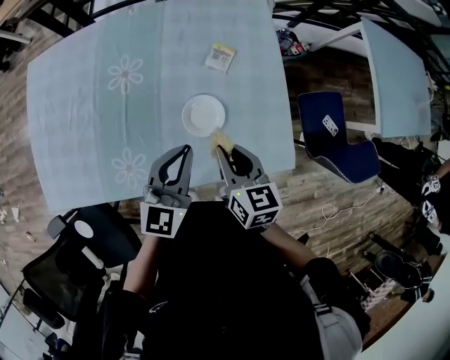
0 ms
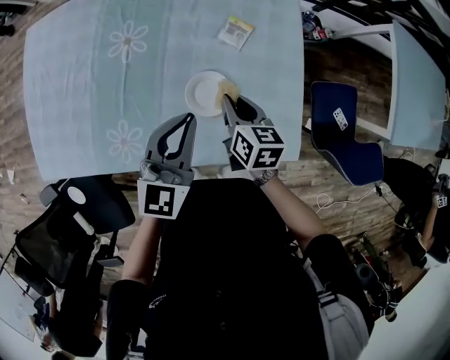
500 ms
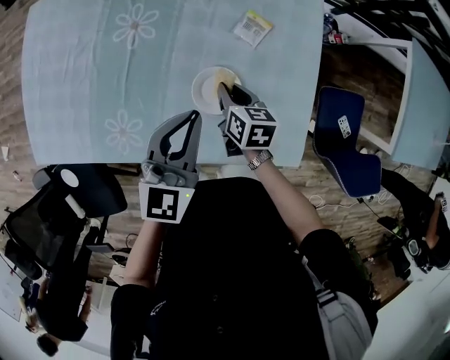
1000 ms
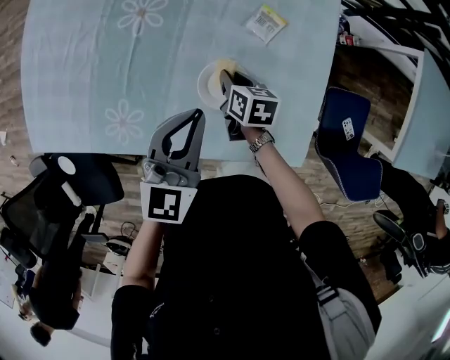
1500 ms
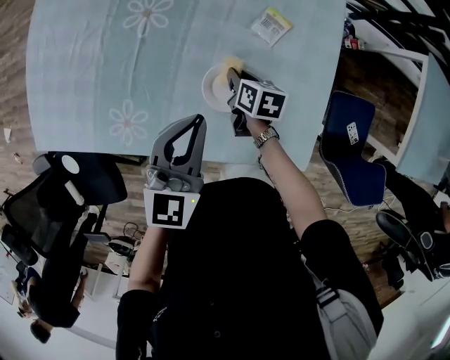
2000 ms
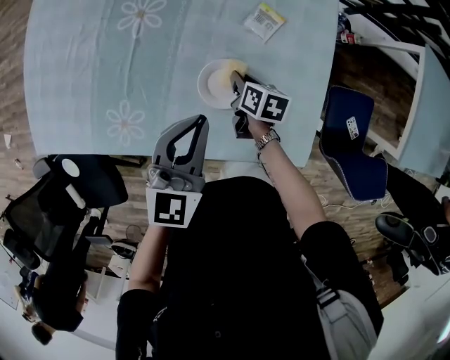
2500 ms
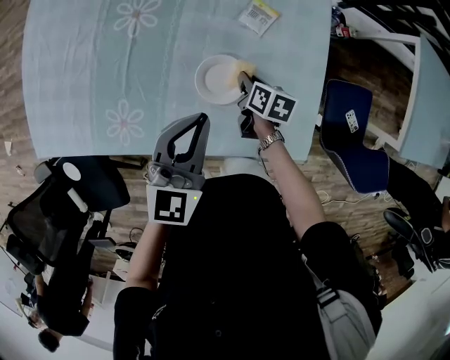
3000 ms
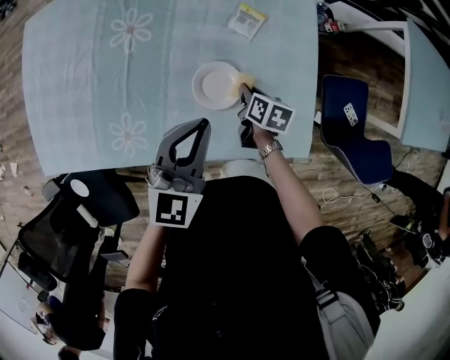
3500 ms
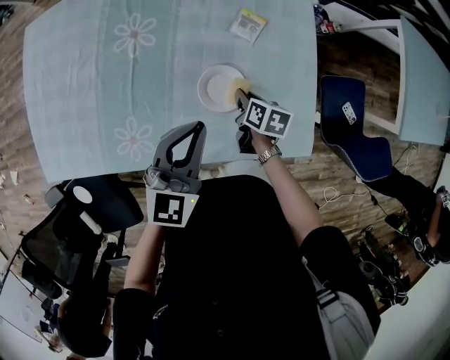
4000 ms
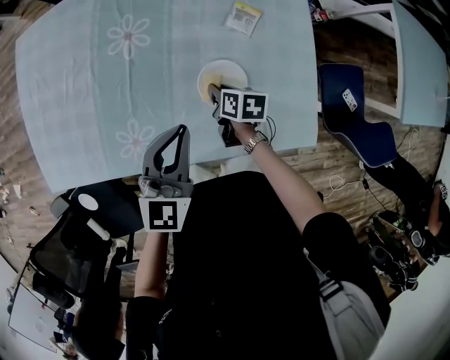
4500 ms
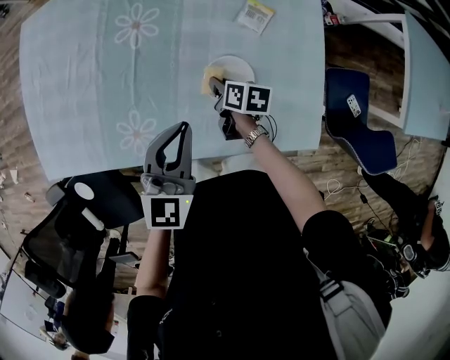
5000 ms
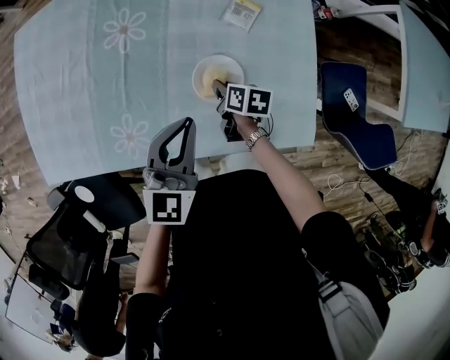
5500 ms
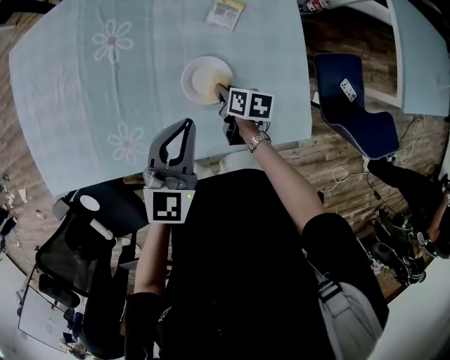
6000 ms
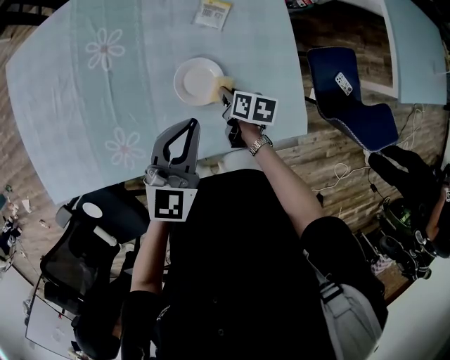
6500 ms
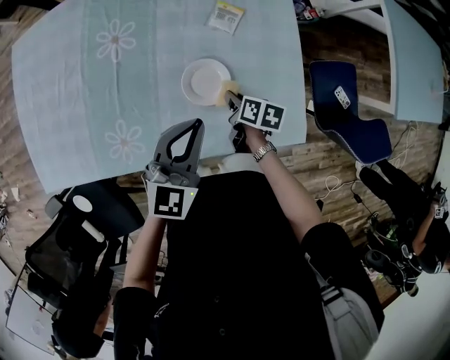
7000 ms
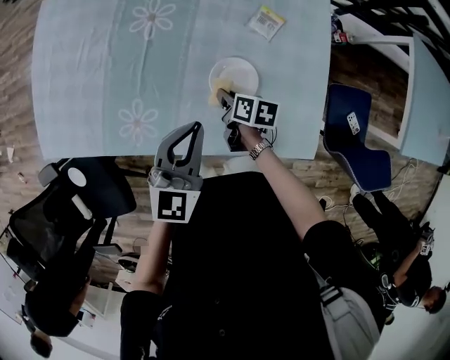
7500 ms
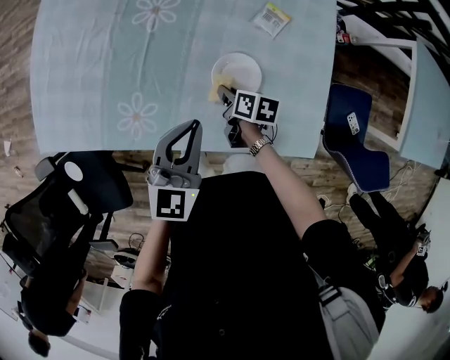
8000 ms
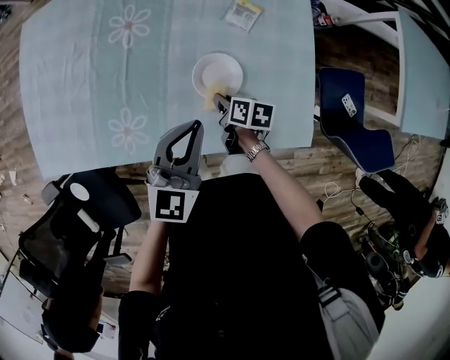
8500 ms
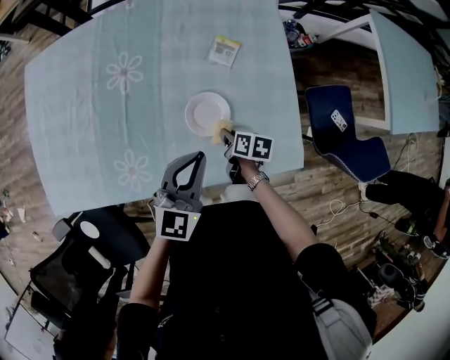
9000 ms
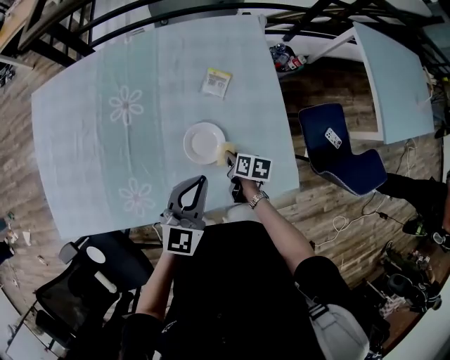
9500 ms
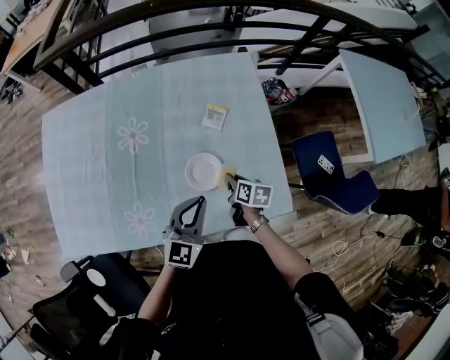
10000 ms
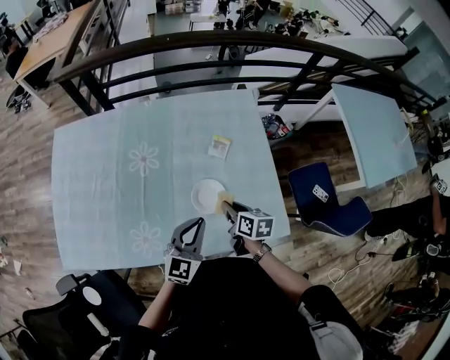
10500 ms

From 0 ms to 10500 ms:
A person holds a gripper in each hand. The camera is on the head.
From 0 ms to 2000 ms: The left gripper changes place by approximately 5 cm. The right gripper travels downward and forward by roughly 25 cm, and swivels about 30 degrees.
From 2000 ms to 4000 ms: The right gripper travels backward by approximately 5 cm.
From 4000 ms to 6500 ms: The left gripper changes place by approximately 5 cm. The right gripper reaches roughly 10 cm to the left, then returns.
From 6500 ms to 8500 ms: The right gripper shifts approximately 10 cm to the left.
From 8500 ms to 10500 ms: The right gripper is displaced upward by about 15 cm, and swivels some 20 degrees.

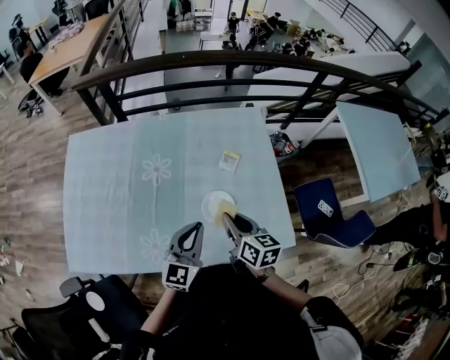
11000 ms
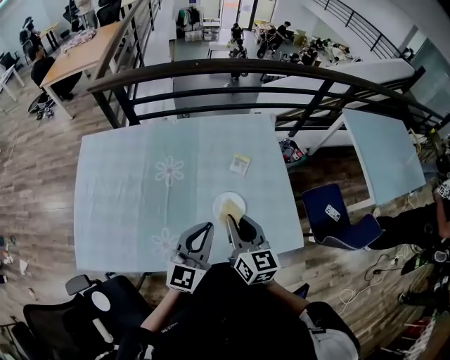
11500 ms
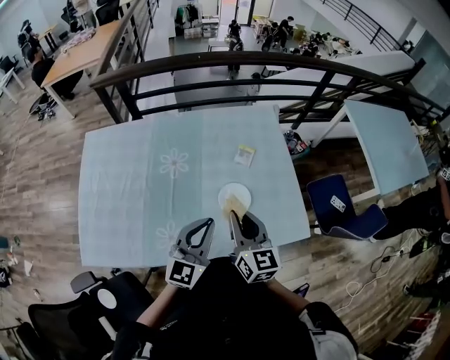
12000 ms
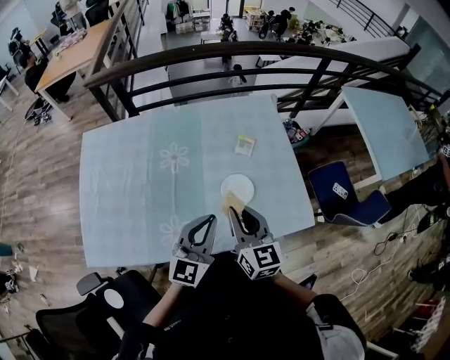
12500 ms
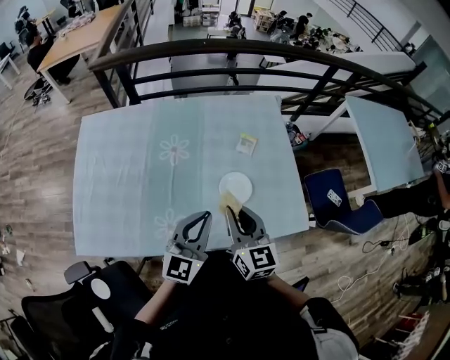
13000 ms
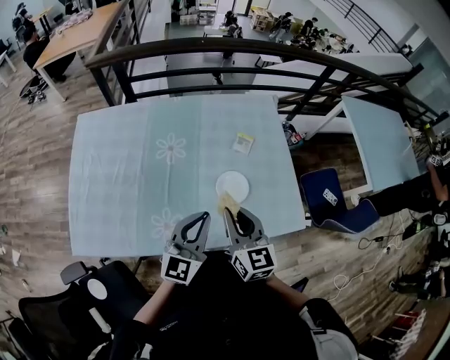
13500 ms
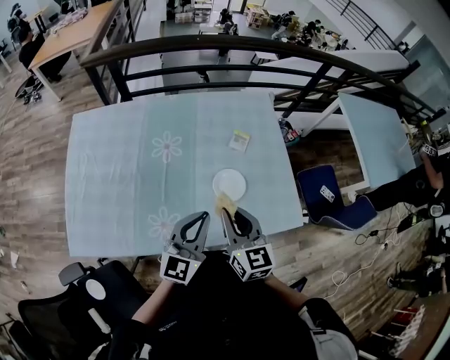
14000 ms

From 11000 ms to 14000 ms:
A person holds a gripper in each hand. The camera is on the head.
From 11000 ms to 12500 ms: The left gripper heads backward, covering approximately 5 cm. Meanwhile the right gripper travels backward, to the left and upward by roughly 10 cm, and swivels about 30 degrees.
From 12500 ms to 14000 ms: The grippers make only small movements.

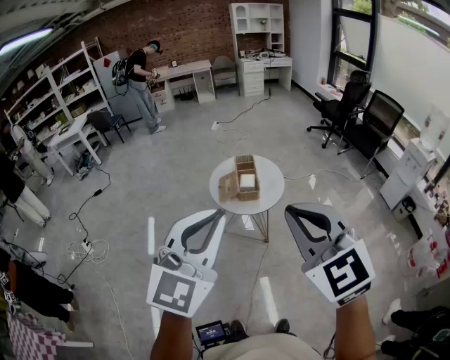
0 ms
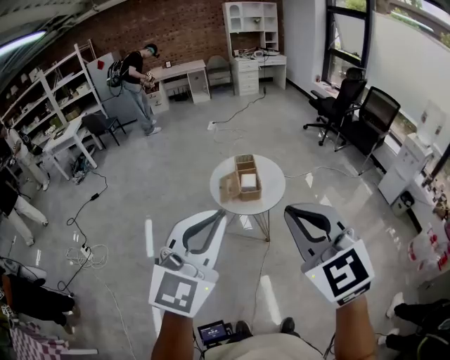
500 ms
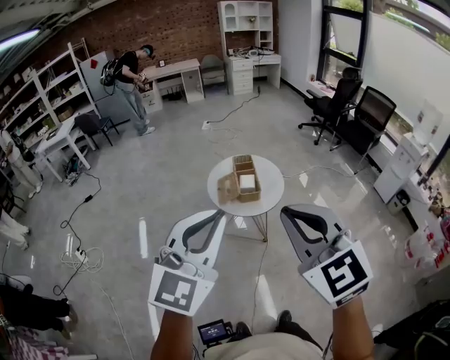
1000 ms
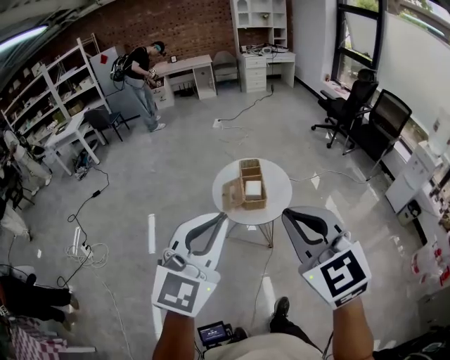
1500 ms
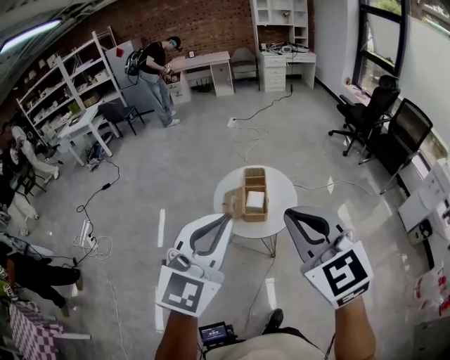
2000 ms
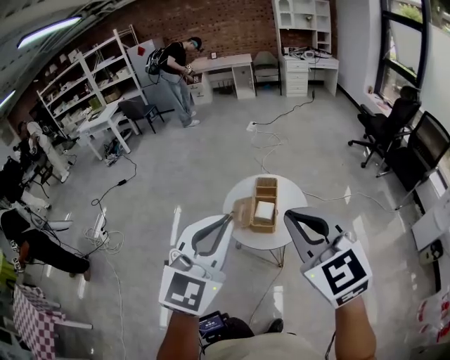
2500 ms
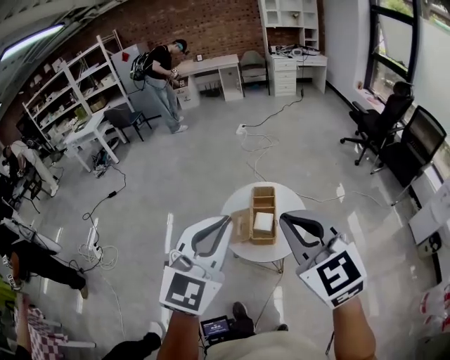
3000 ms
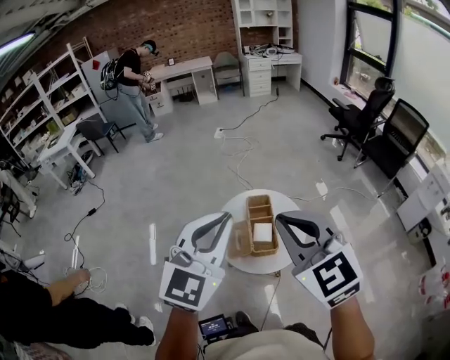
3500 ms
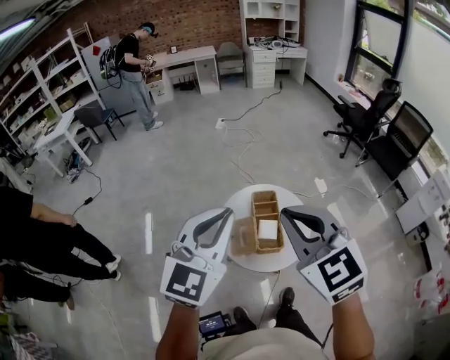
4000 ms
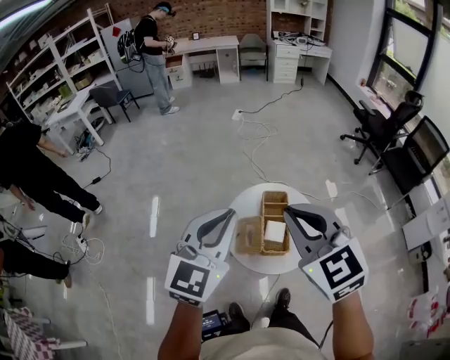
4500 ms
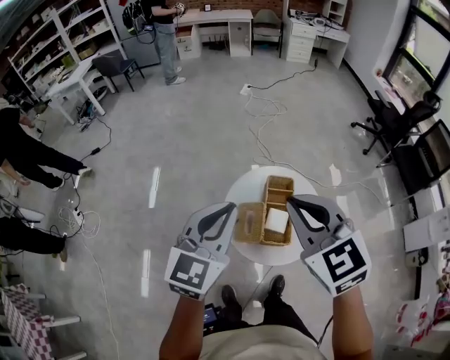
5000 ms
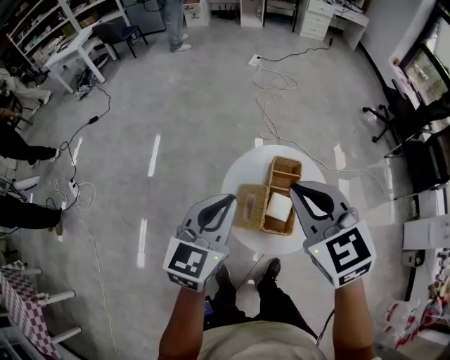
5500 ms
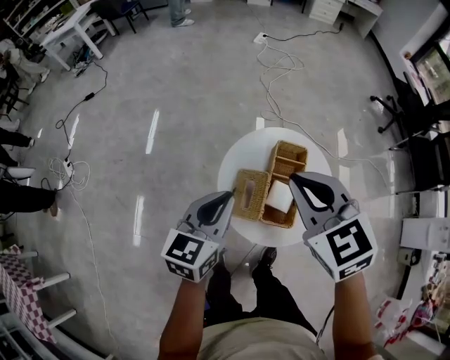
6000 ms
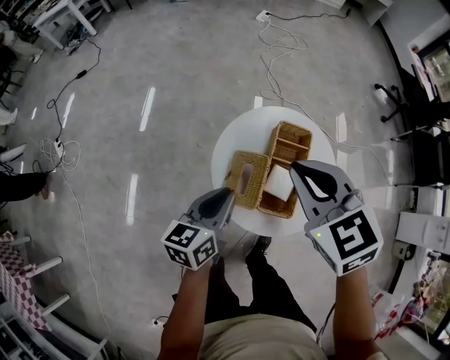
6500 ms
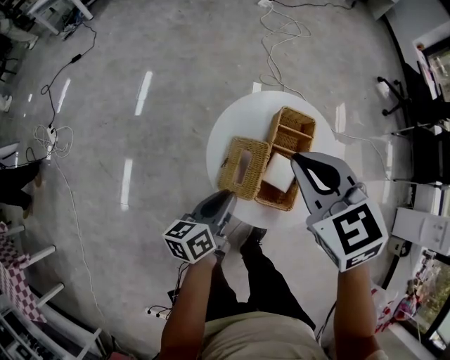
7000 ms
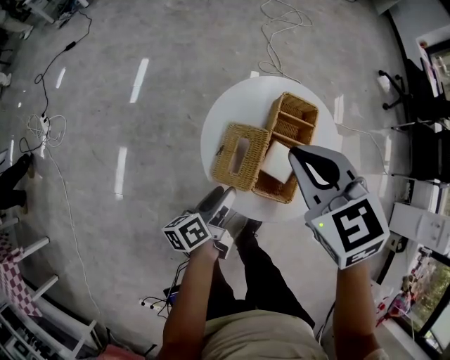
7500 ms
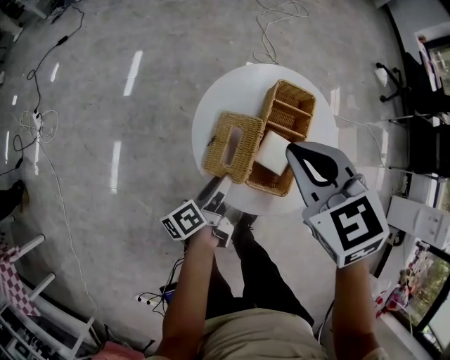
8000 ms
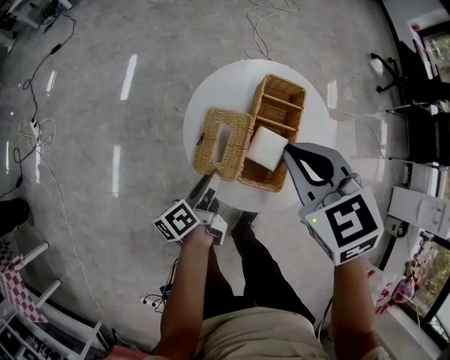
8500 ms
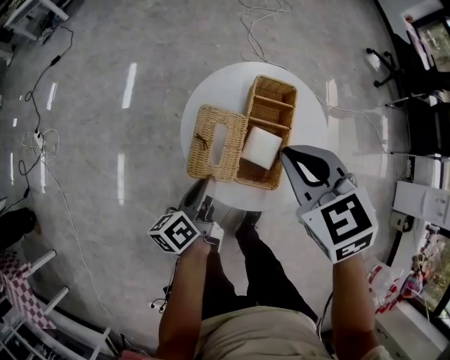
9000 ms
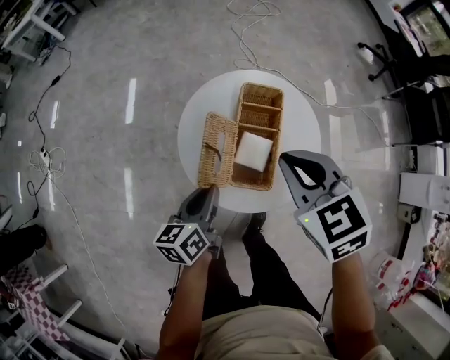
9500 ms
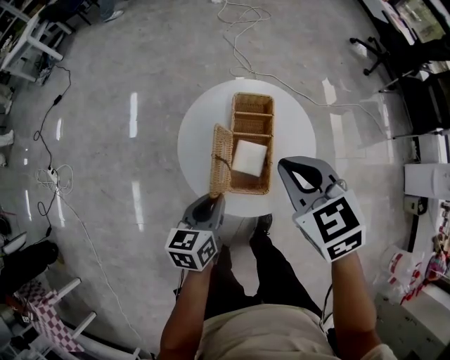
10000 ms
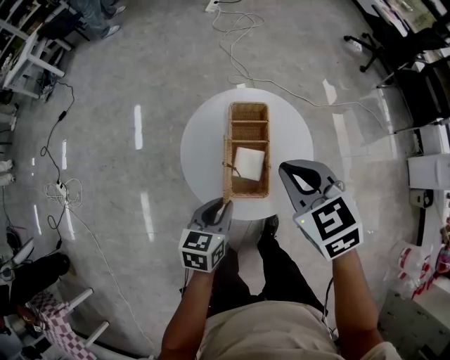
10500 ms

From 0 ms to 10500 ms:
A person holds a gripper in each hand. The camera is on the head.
From 0 ms to 2000 ms: Both grippers travel together forward, some 20 cm.
From 2000 ms to 4000 ms: The right gripper shifts about 25 cm forward and to the left; the left gripper travels forward by roughly 25 cm.
From 4000 ms to 6500 ms: The left gripper goes roughly 40 cm downward, and twists some 50 degrees counterclockwise, seen from behind. The right gripper goes about 30 cm downward and forward, and rotates some 30 degrees.
From 6500 ms to 8500 ms: The left gripper goes approximately 20 cm downward, rotates around the line of its fingers by roughly 40 degrees, counterclockwise from behind, and opens its fingers; the right gripper heads downward, covering some 10 cm.
From 8500 ms to 10500 ms: The left gripper is displaced upward and to the right by approximately 15 cm, twists approximately 60 degrees clockwise, seen from behind, and closes up. The right gripper is displaced to the right by roughly 10 cm.

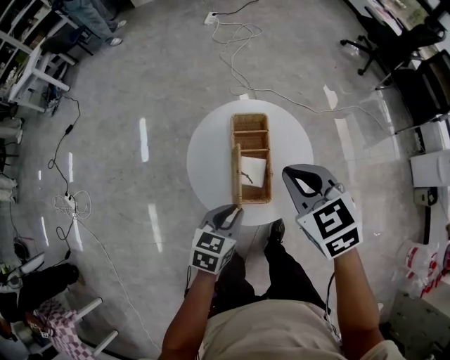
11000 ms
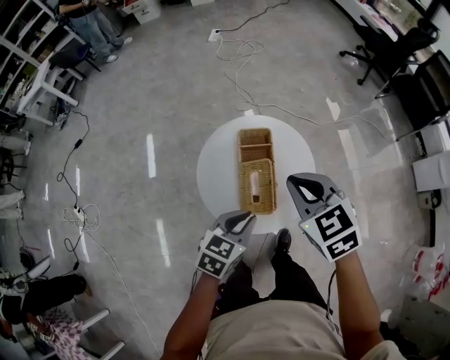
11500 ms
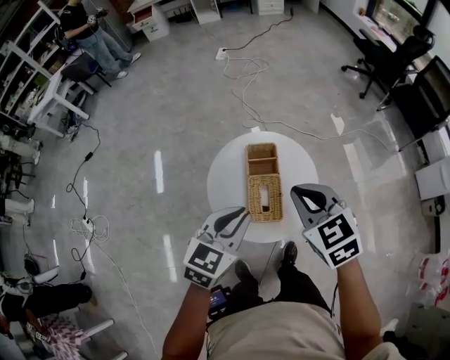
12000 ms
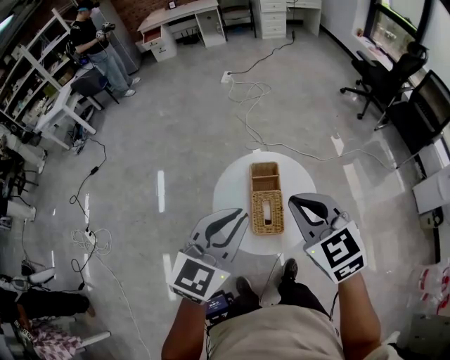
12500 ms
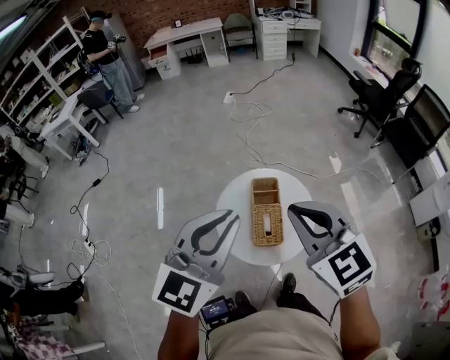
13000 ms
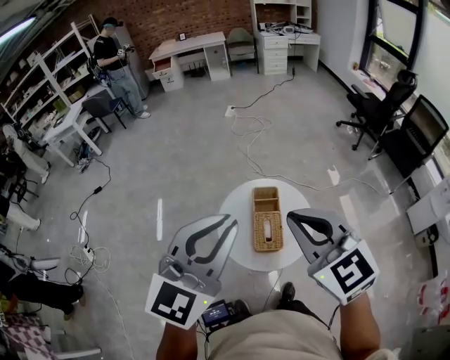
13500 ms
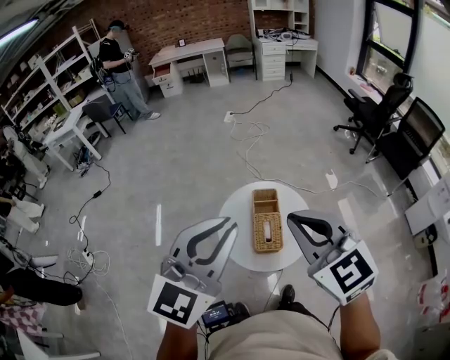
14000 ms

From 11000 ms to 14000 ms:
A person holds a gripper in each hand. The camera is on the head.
From 11000 ms to 12500 ms: The right gripper moves upward, some 15 cm; the left gripper goes roughly 30 cm upward, and turns by roughly 40 degrees.
From 12500 ms to 14000 ms: Both grippers move upward and backward, roughly 15 cm.
